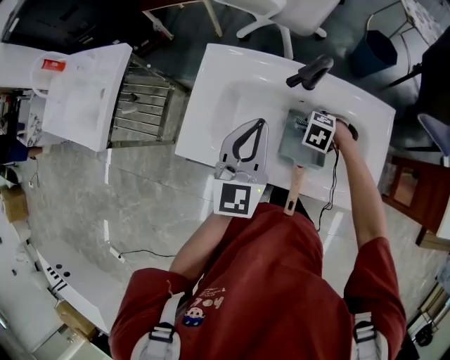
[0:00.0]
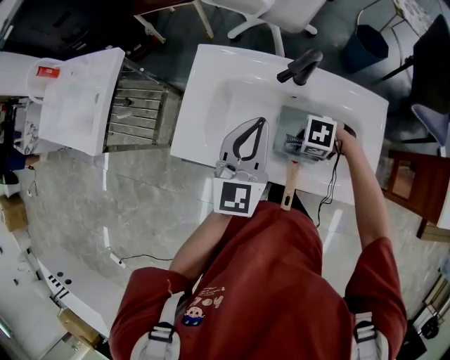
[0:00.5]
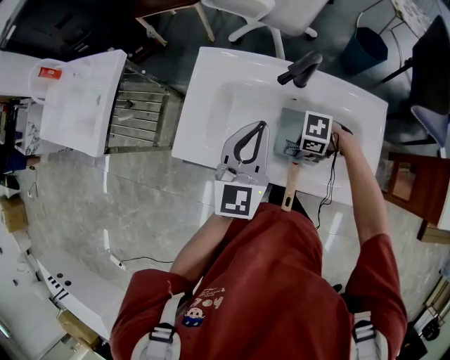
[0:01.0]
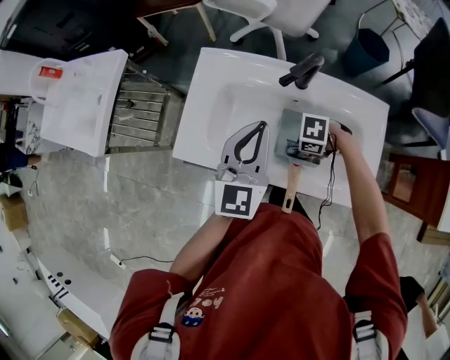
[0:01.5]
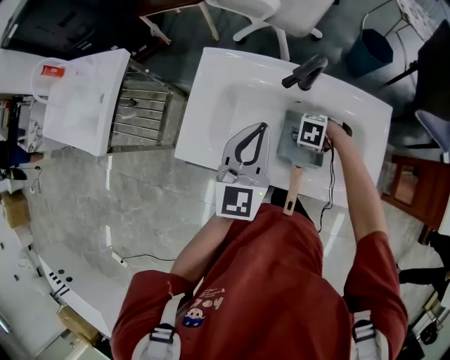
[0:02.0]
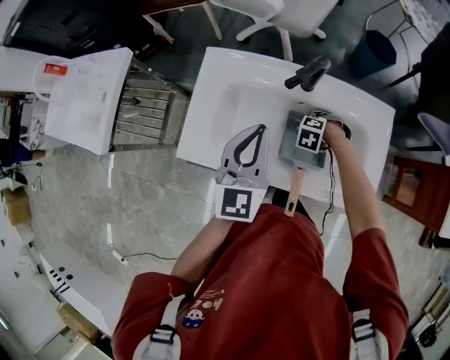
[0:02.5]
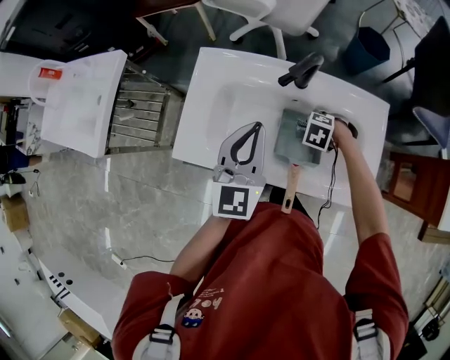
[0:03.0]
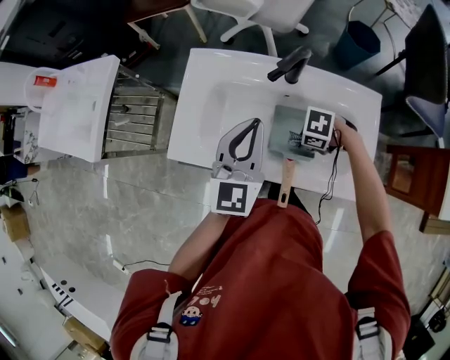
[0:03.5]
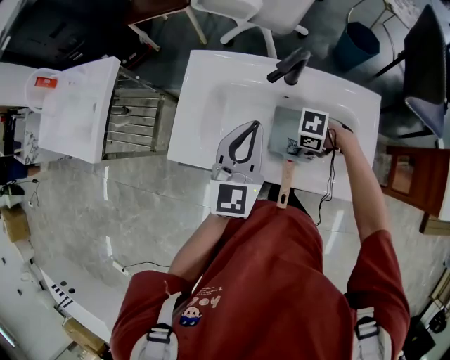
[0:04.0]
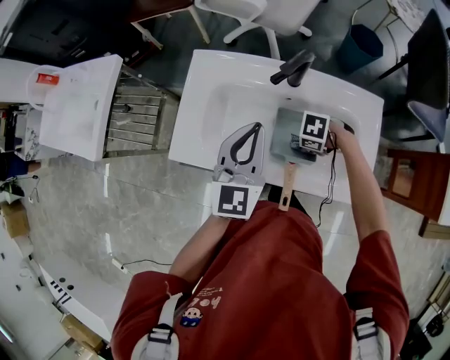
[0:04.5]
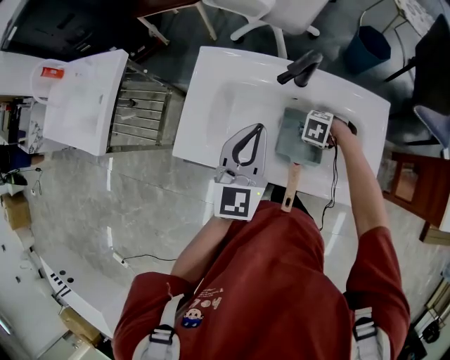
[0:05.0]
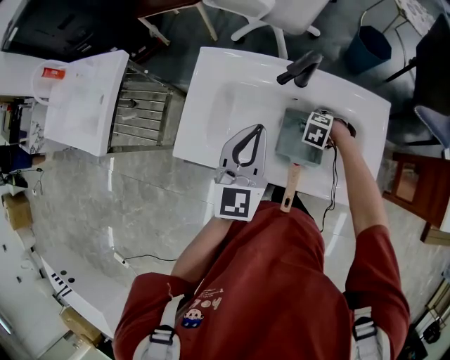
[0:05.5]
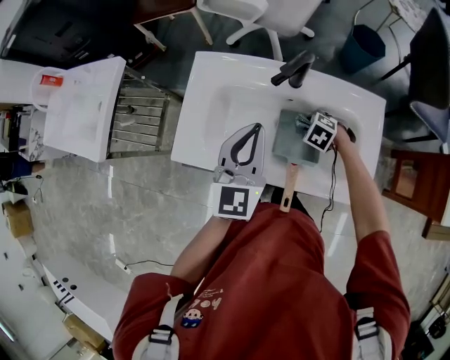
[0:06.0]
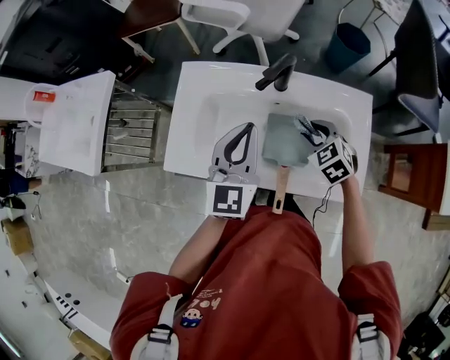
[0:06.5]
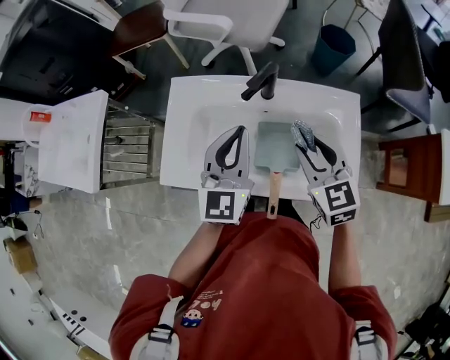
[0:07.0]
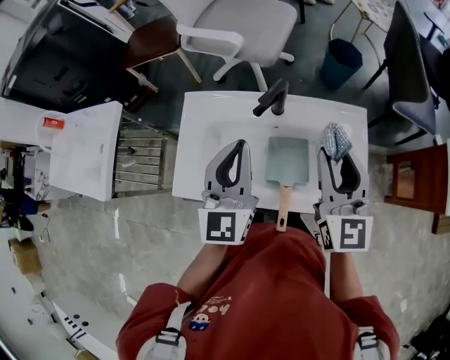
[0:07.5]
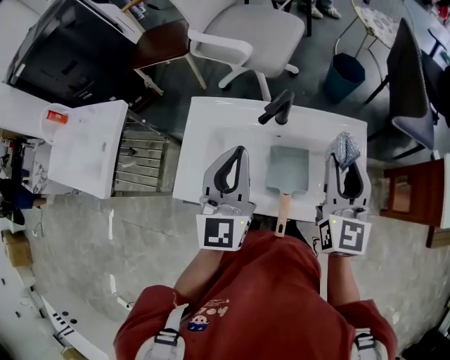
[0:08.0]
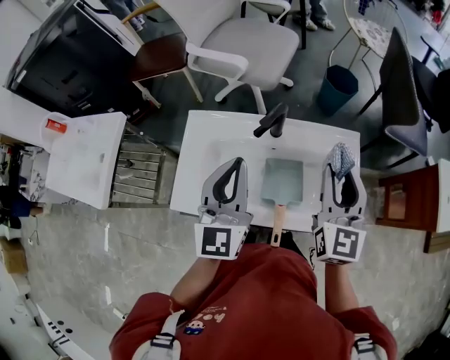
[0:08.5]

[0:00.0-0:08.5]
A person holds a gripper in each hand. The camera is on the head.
0:02.0 to 0:04.0: The right gripper ends up some 10 cm from where it was, and turns by roughly 20 degrees.
0:04.0 to 0:06.5: The right gripper moves upward, about 10 cm, and rotates about 60 degrees.
0:06.5 to 0:08.5: The left gripper travels upward by approximately 10 cm, while the right gripper moves upward, about 25 cm, and tilts its fingers about 50 degrees upward.

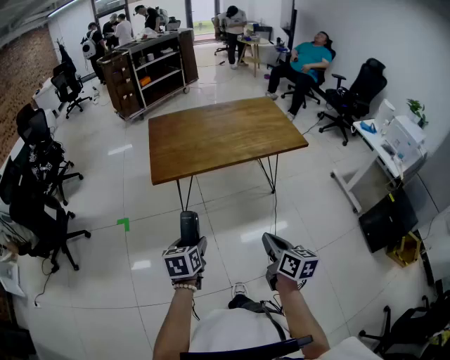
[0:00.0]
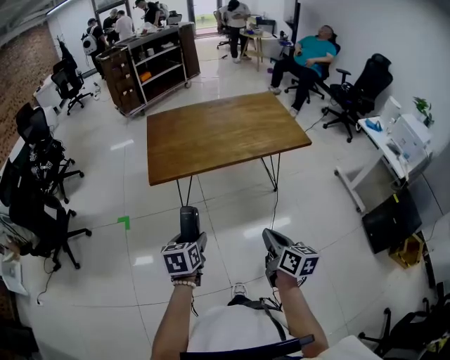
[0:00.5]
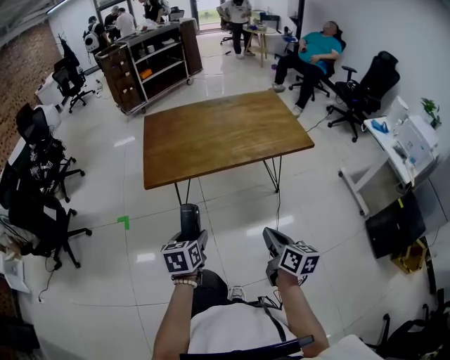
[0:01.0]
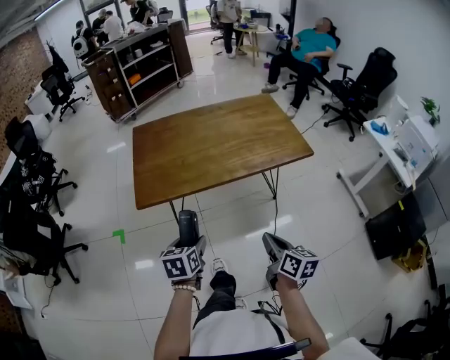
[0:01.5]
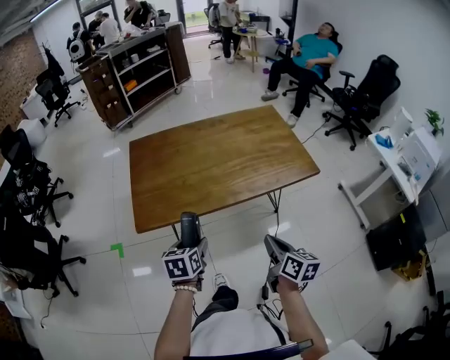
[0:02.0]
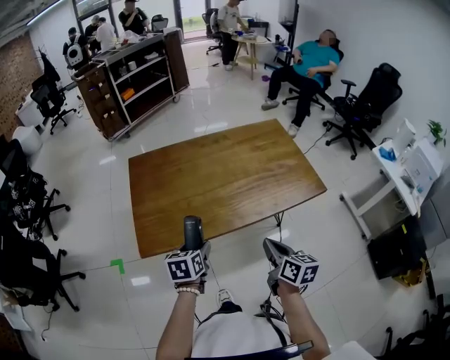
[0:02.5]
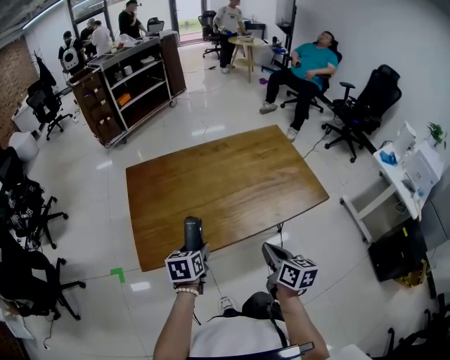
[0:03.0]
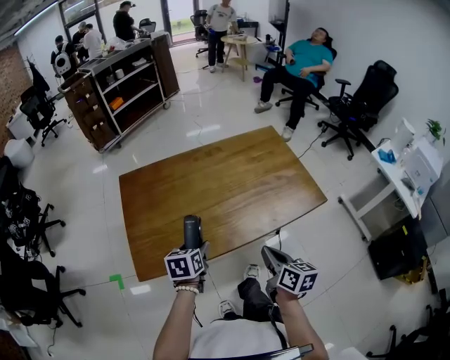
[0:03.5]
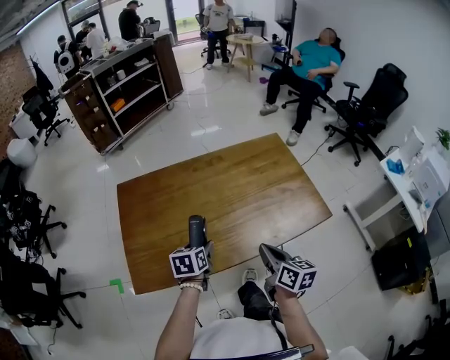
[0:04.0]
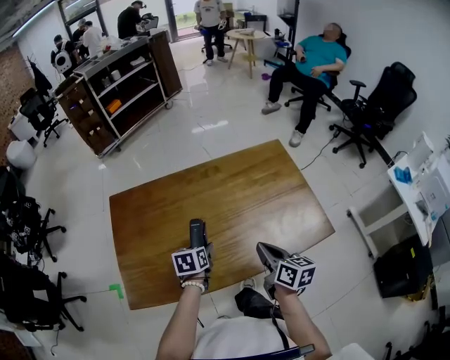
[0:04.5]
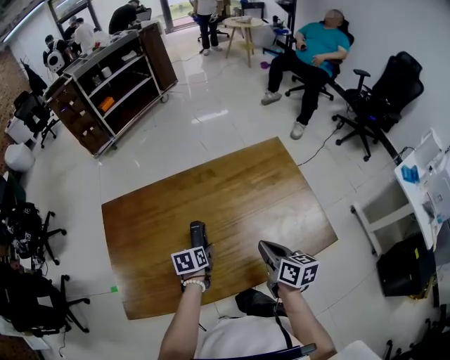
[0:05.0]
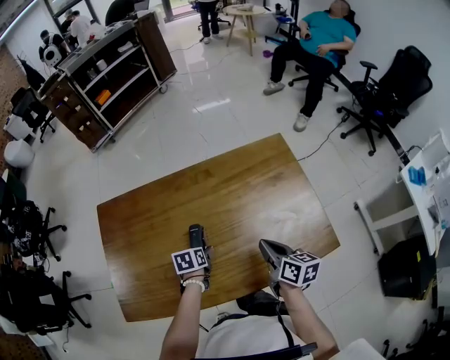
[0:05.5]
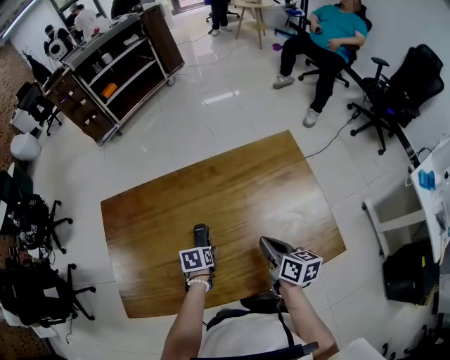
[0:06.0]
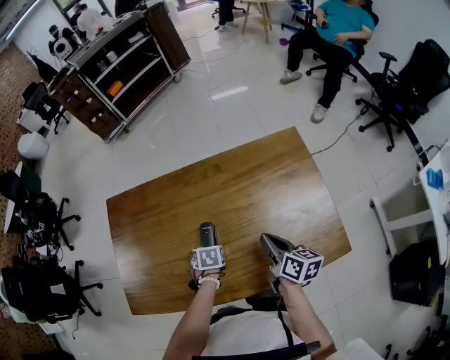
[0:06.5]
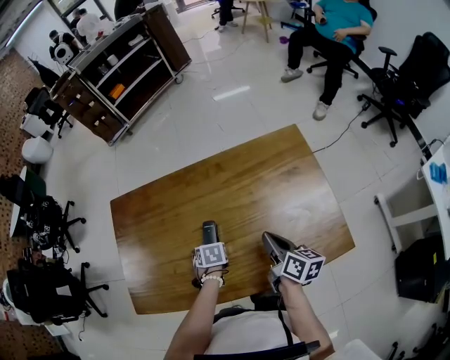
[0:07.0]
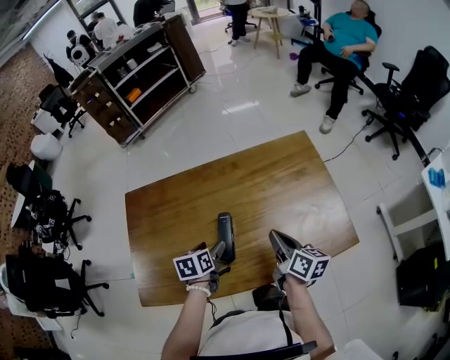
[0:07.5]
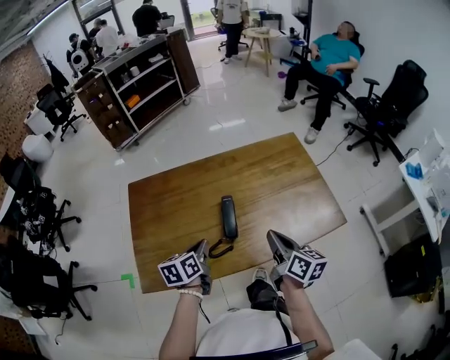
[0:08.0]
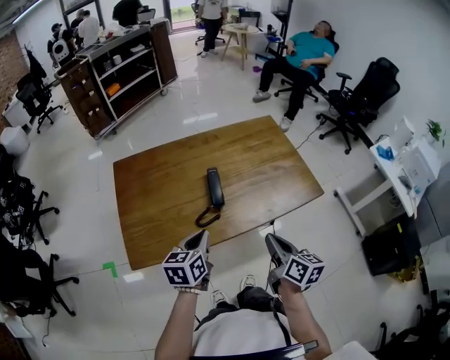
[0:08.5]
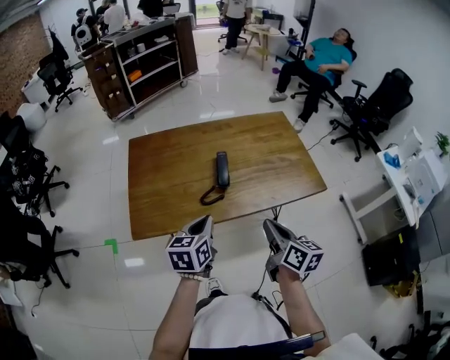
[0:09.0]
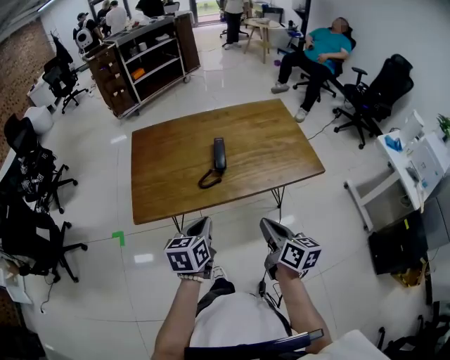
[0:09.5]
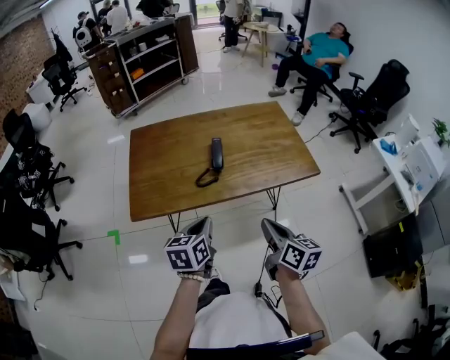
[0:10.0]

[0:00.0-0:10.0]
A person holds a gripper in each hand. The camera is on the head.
0:00.0 to 0:02.0: The two grippers go approximately 25 cm forward.
0:02.0 to 0:04.0: Both grippers move forward, roughly 25 cm.
0:04.0 to 0:06.0: The right gripper moves forward, roughly 20 cm. Meanwhile the left gripper travels downward and forward by about 20 cm, and rotates about 20 degrees.
0:06.0 to 0:08.0: The right gripper changes place by about 15 cm. Meanwhile the left gripper is displaced upward by roughly 20 cm, points its fingers roughly 40 degrees further upward, and closes its fingers.
0:08.0 to 0:10.0: Both grippers move backward, about 25 cm.

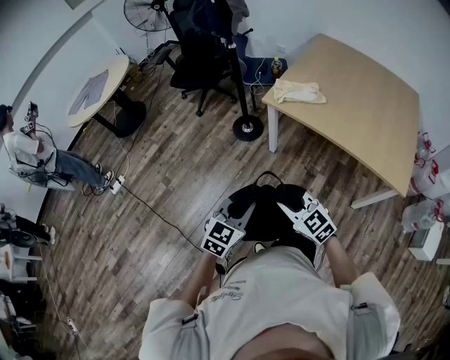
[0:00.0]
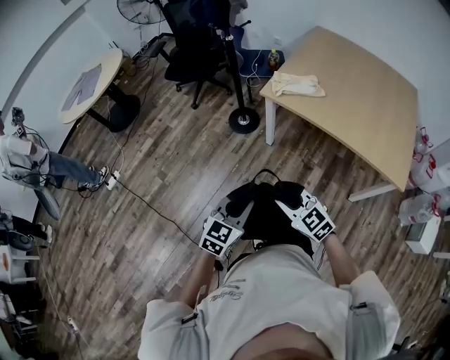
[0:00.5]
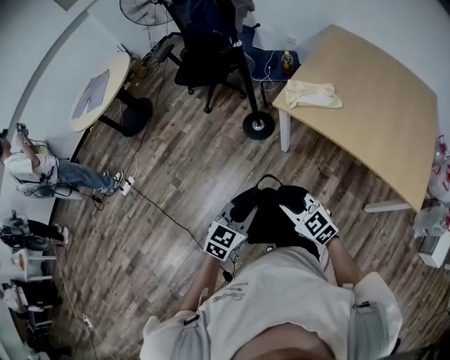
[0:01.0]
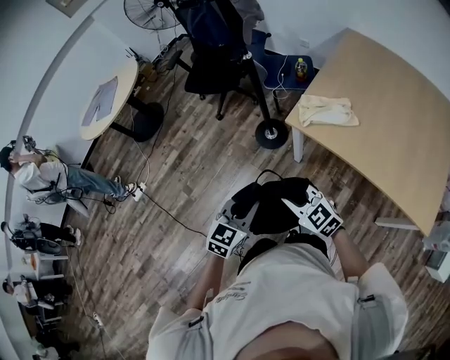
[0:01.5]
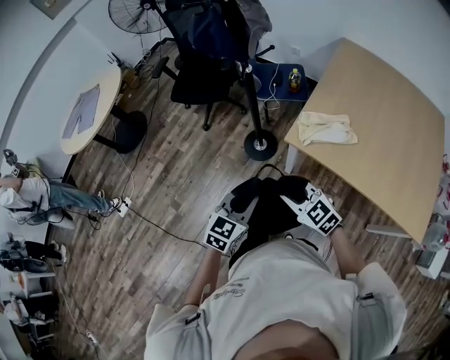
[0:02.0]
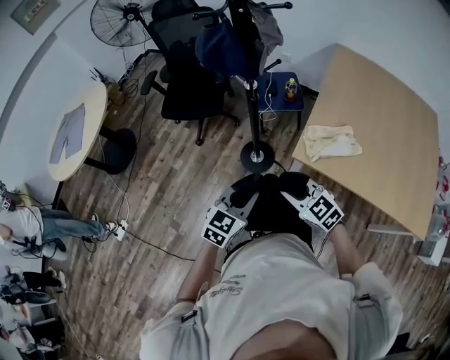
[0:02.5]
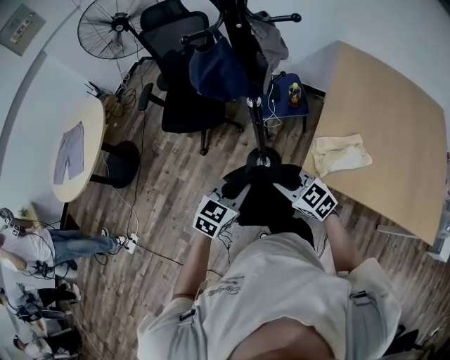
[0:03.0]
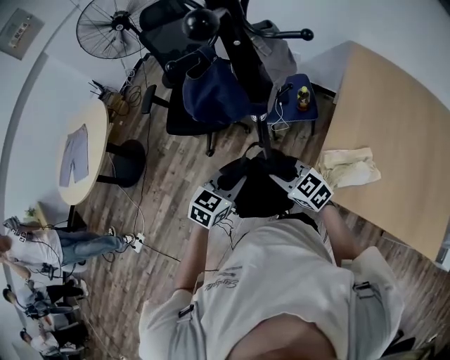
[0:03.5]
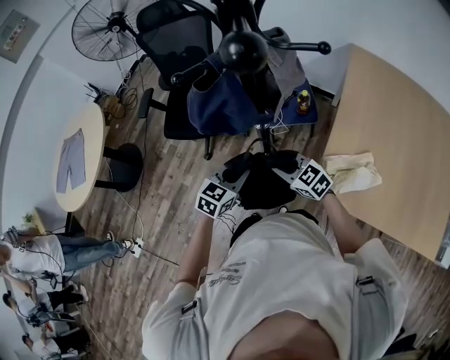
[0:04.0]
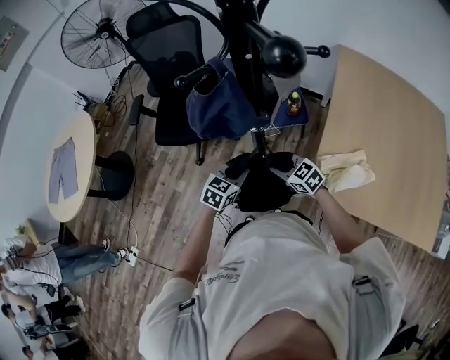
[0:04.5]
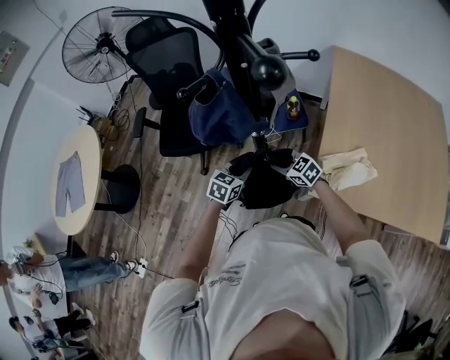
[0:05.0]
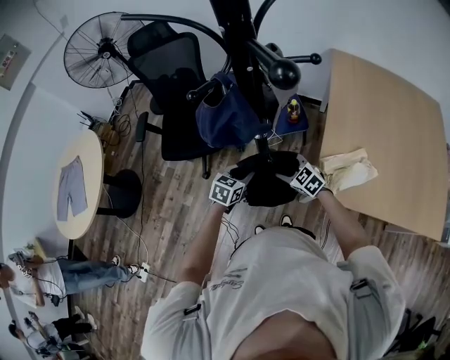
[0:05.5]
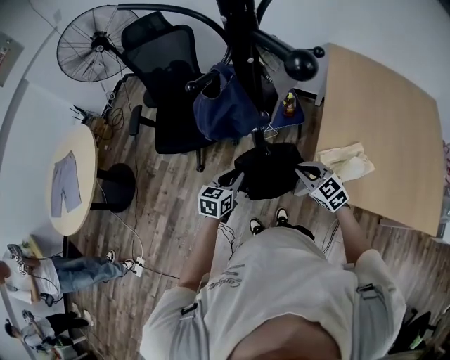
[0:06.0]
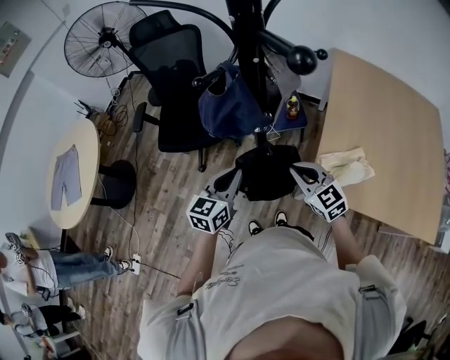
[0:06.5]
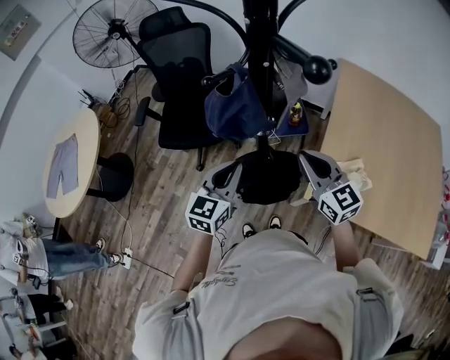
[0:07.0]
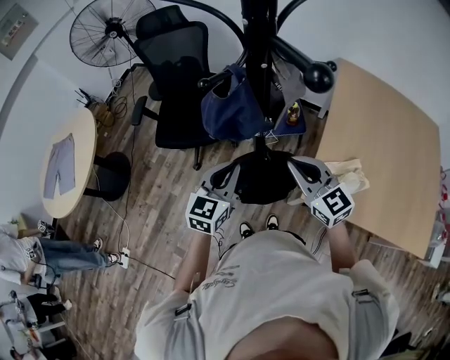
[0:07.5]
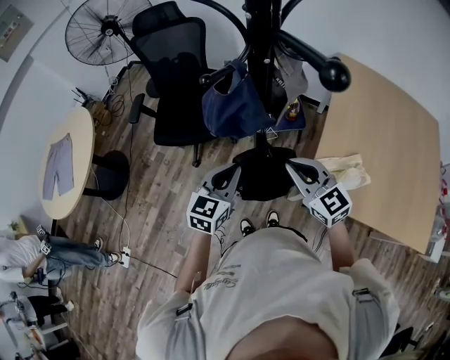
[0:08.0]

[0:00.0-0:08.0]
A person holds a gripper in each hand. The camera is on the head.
0:00.0 to 0:02.0: Both grippers move forward, about 35 cm.
0:02.0 to 0:04.0: The two grippers travel together, forward, some 40 cm.
0:04.0 to 0:06.0: The right gripper heads to the right, covering about 10 cm, moves approximately 5 cm downward and comes back, and opens and closes again.
0:06.0 to 0:08.0: Both grippers travel together upward, roughly 15 cm.
